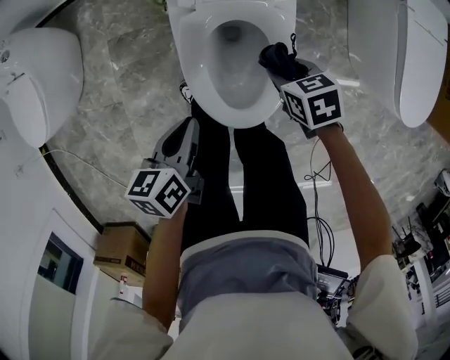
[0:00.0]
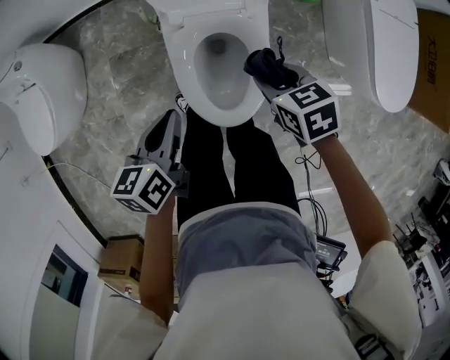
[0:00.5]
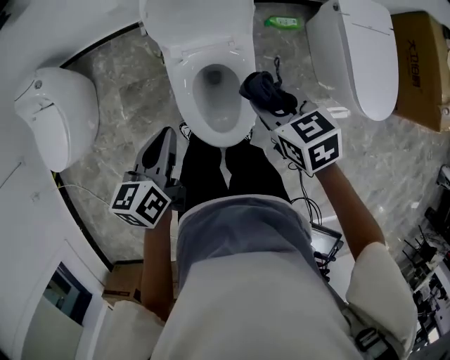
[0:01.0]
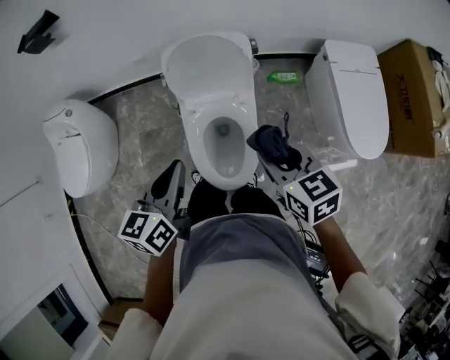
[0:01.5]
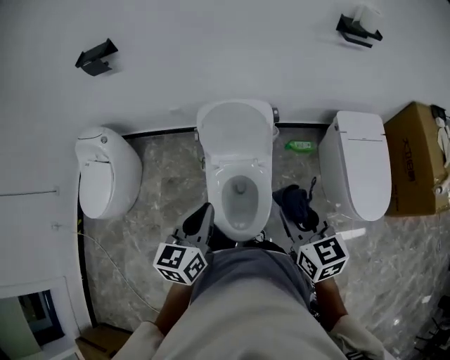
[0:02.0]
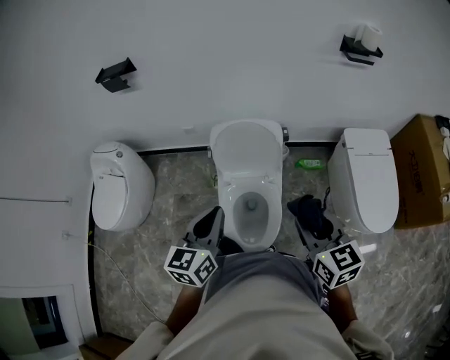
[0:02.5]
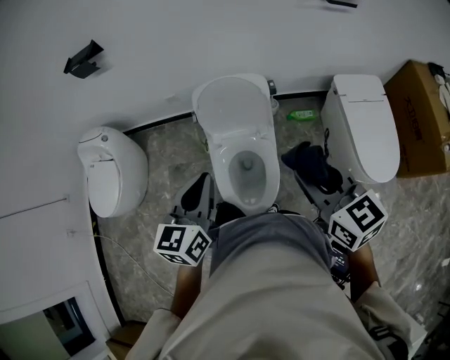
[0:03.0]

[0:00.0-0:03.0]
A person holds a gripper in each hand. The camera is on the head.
0:00.0 to 0:01.5: Both grippers travel together upward, roughly 35 cm. The right gripper rotates about 30 degrees. Meanwhile the left gripper turns by about 30 degrees.
0:01.5 to 0:03.0: The right gripper travels upward by approximately 15 cm. Meanwhile the left gripper is displaced upward by approximately 10 cm.

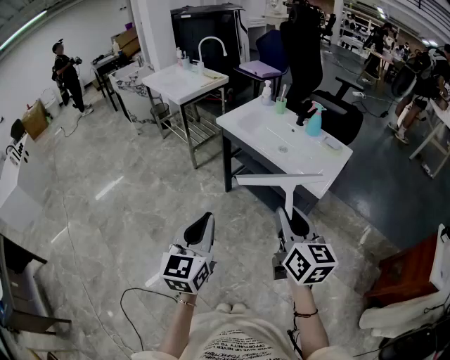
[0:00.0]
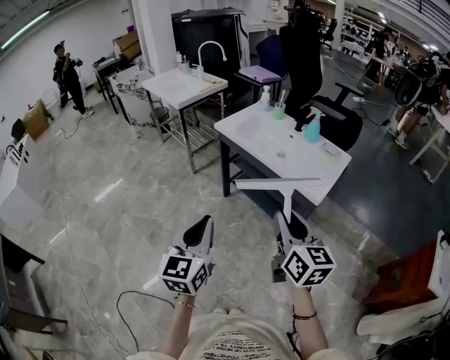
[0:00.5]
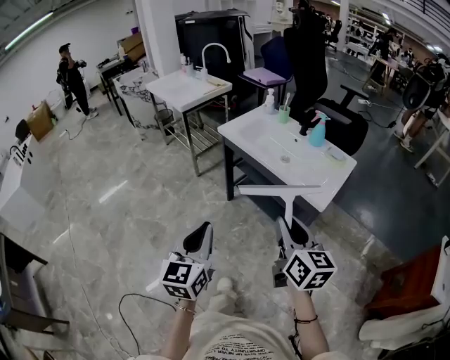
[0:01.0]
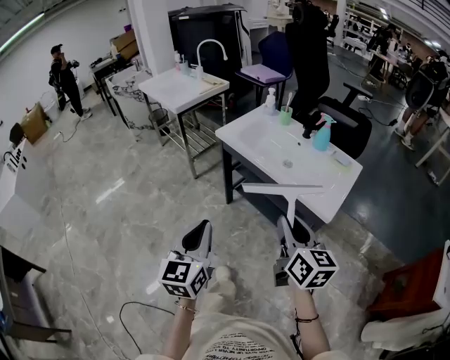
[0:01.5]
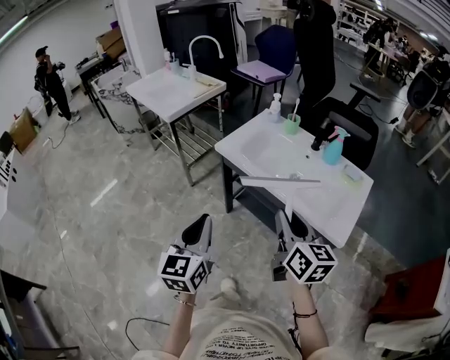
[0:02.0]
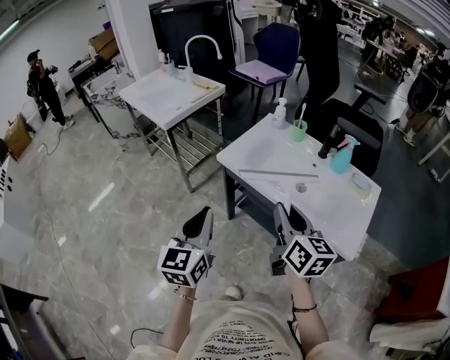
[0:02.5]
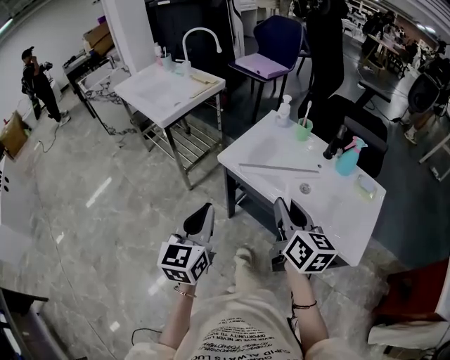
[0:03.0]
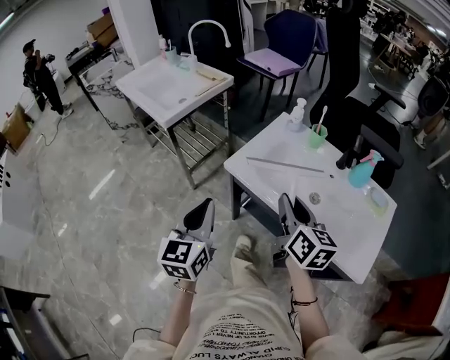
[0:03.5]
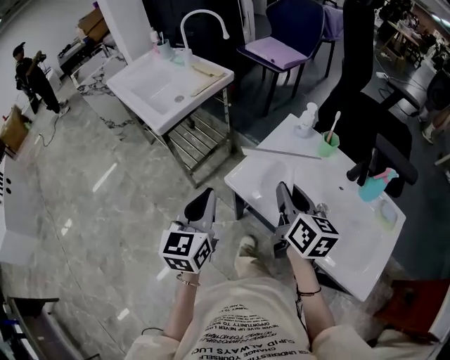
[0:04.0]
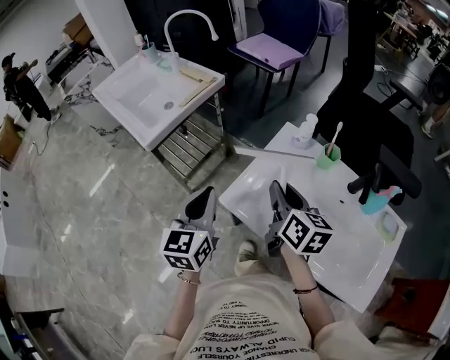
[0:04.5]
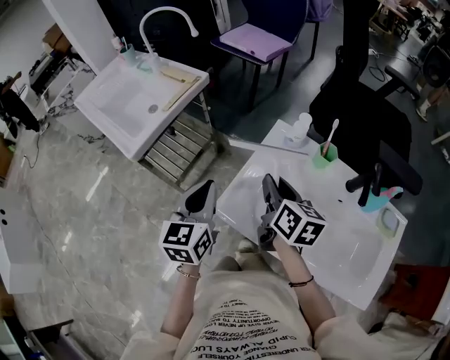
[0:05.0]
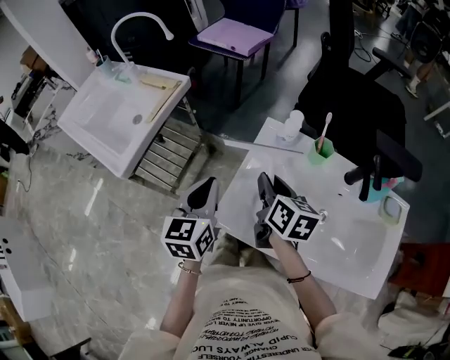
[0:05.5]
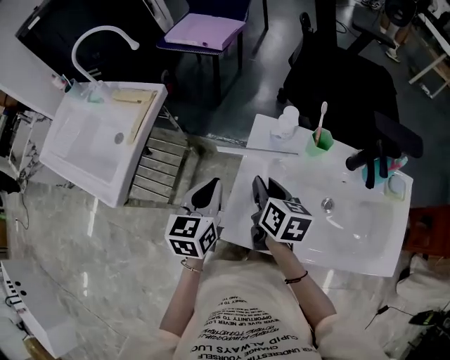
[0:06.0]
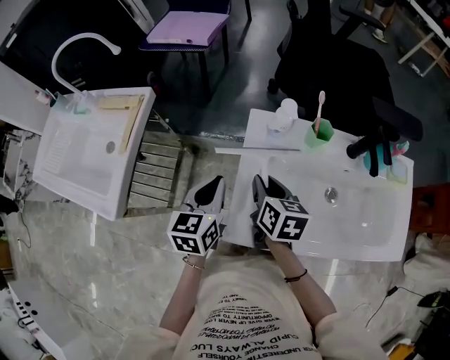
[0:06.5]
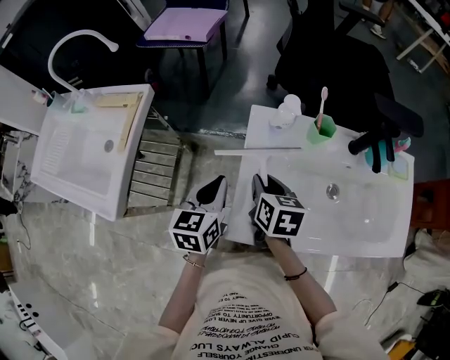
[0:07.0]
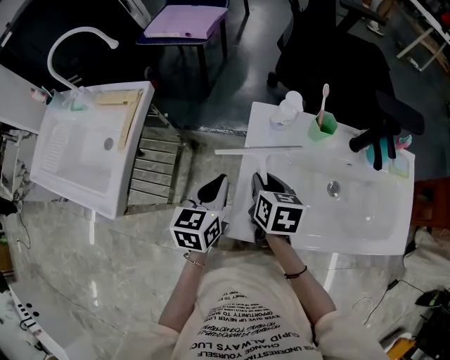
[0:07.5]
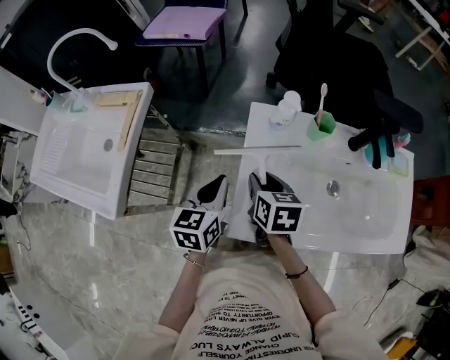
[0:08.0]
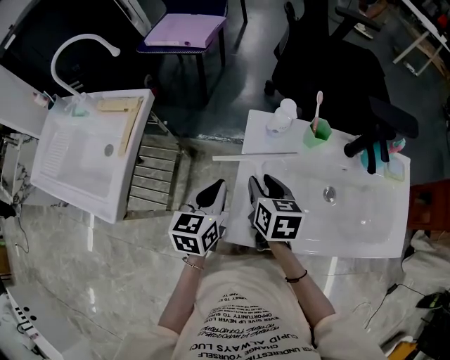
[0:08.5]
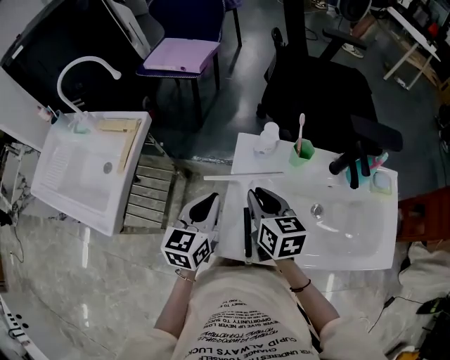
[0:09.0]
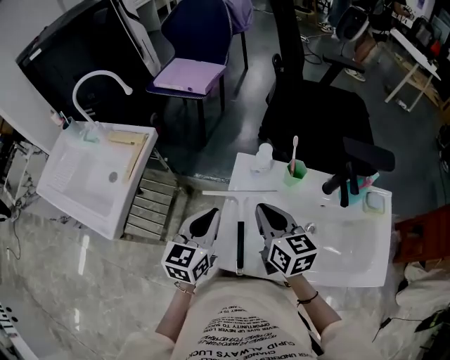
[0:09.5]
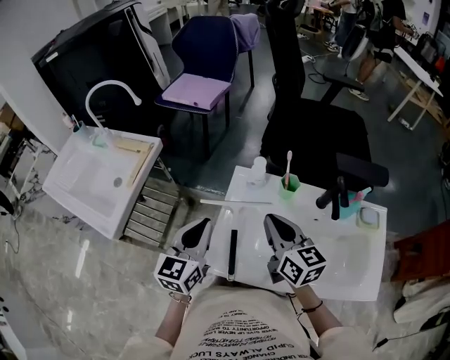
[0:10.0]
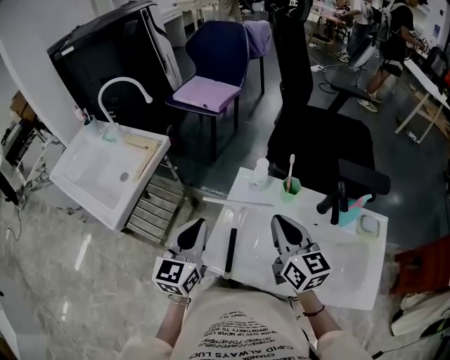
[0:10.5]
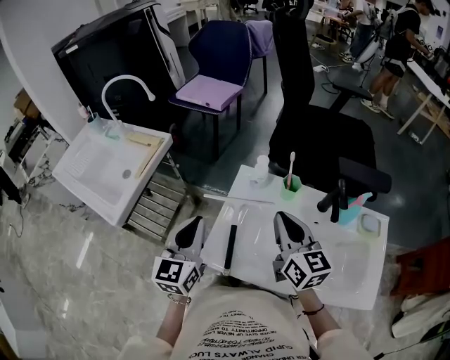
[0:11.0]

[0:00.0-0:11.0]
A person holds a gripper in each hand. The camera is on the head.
0:00.0 to 0:02.0: Both grippers move forward, roughly 25 cm.
0:02.0 to 0:03.5: Both grippers travel together forward, about 20 cm.
0:03.5 to 0:05.5: Both grippers travel together forward, roughly 30 cm. The right gripper turns by some 20 degrees.
0:05.5 to 0:07.5: The left gripper shifts roughly 10 cm downward and forward, and swivels roughly 20 degrees, while the right gripper heads downward, covering some 10 cm, and changes its angle by roughly 20 degrees.
0:07.5 to 0:09.0: The right gripper moves upward, some 5 cm. The left gripper ends up roughly 5 cm from where it was.
0:09.0 to 0:11.0: The left gripper heads upward and backward, covering about 10 cm, and rotates some 20 degrees. The right gripper goes about 15 cm upward and to the right, and rotates approximately 20 degrees.

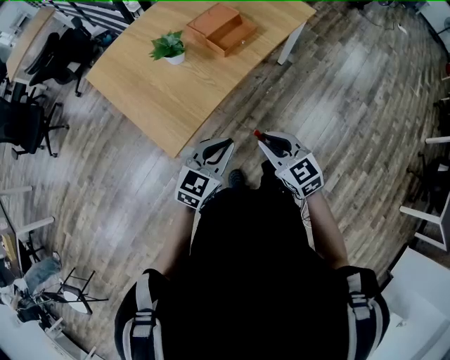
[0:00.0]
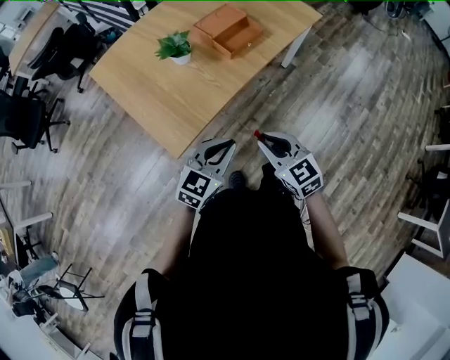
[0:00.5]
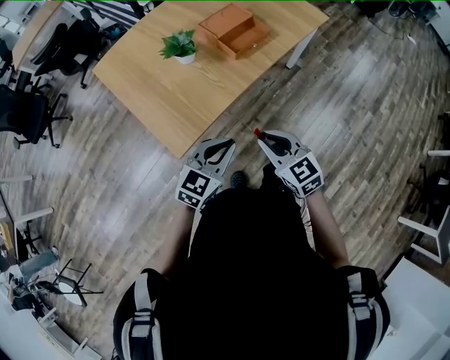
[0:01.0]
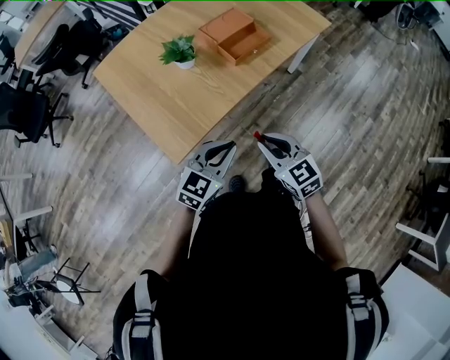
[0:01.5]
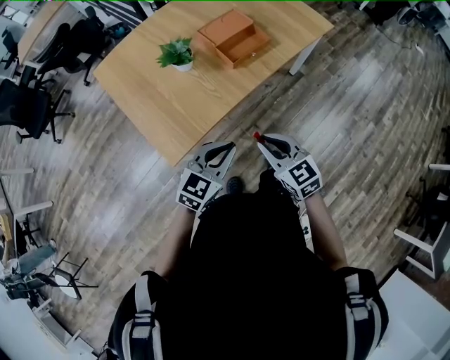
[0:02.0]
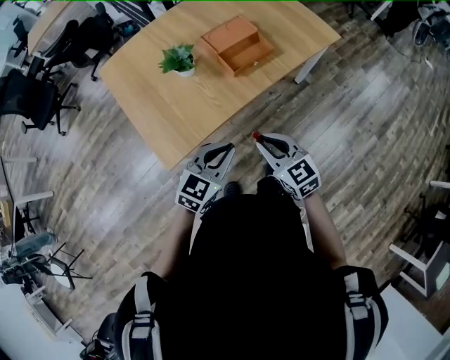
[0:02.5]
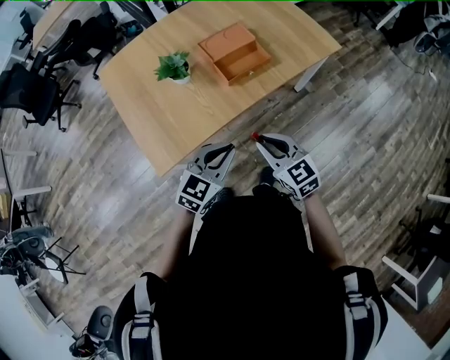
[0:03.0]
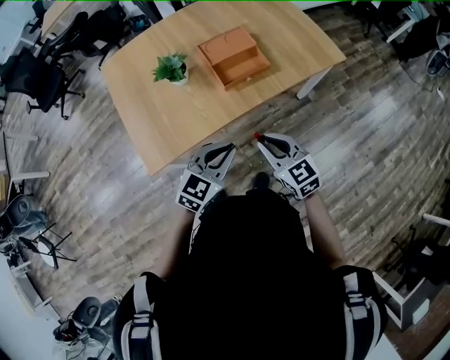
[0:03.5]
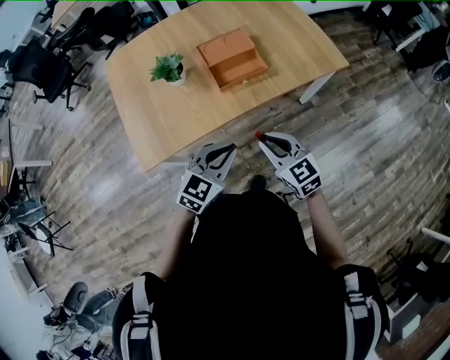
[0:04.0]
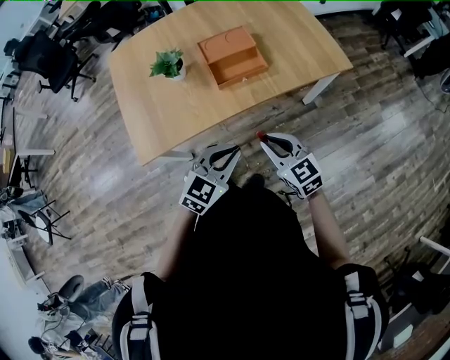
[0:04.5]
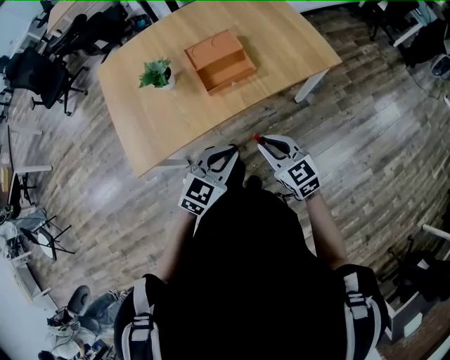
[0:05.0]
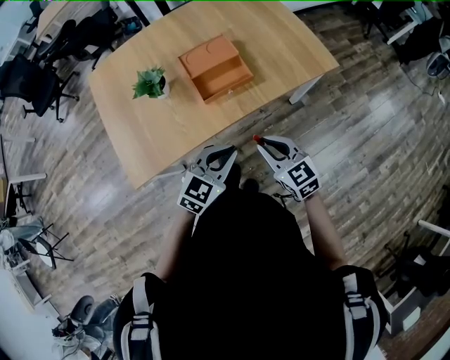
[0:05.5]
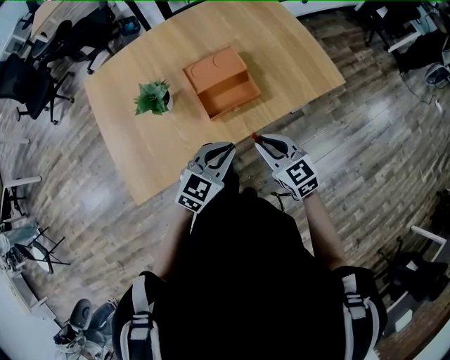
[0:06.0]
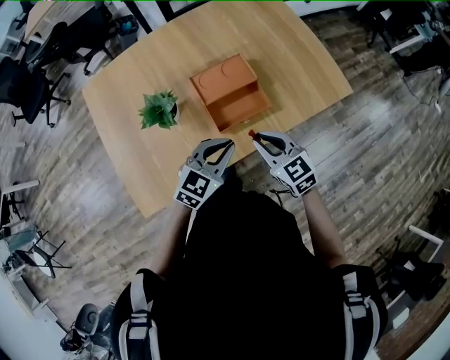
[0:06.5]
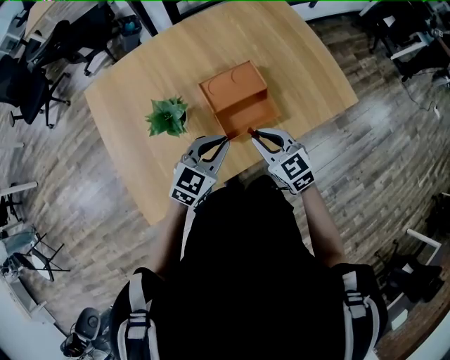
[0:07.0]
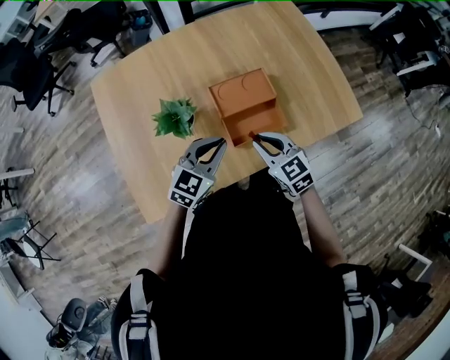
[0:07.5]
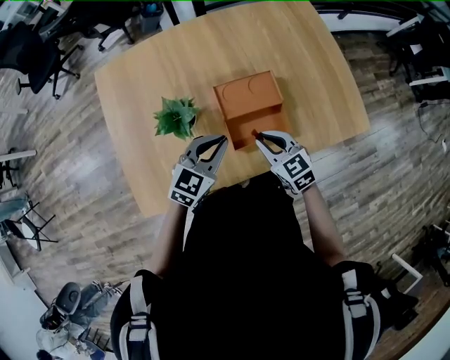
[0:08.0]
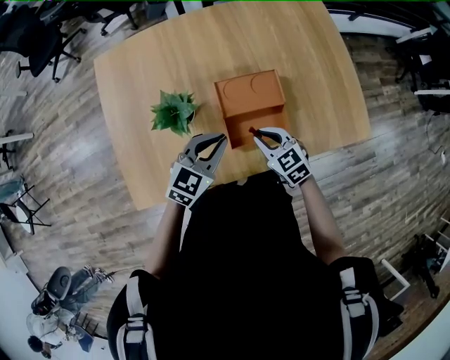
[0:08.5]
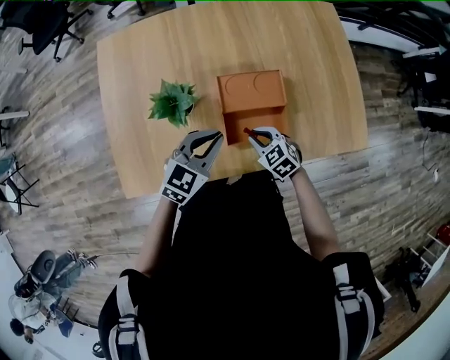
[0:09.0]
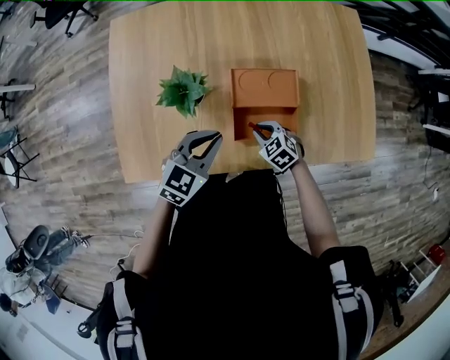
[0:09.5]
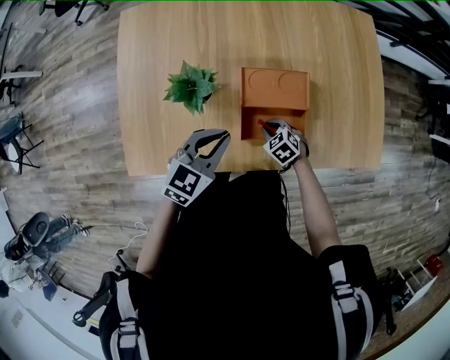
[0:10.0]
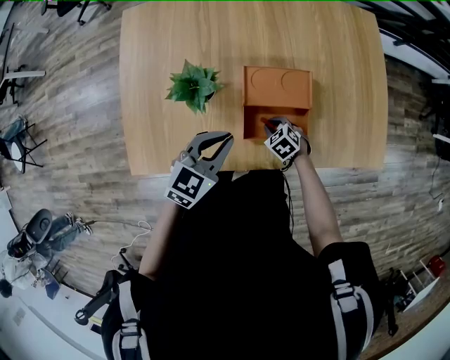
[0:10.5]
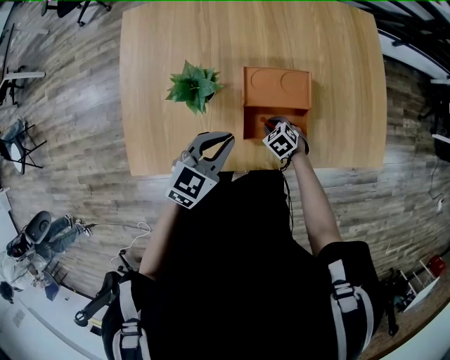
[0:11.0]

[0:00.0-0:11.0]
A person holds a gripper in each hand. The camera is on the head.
0:00.0 to 0:02.0: Both grippers travel together forward, approximately 5 cm.
0:02.0 to 0:03.5: The two grippers go approximately 15 cm to the right and forward.
0:03.5 to 0:05.5: Both grippers move to the right and forward, some 10 cm.
0:05.5 to 0:07.5: Both grippers move forward and to the left, some 30 cm.
0:07.5 to 0:09.0: The right gripper travels downward by some 10 cm, and swivels some 30 degrees.
0:09.0 to 0:11.0: The right gripper heads downward, covering about 10 cm.

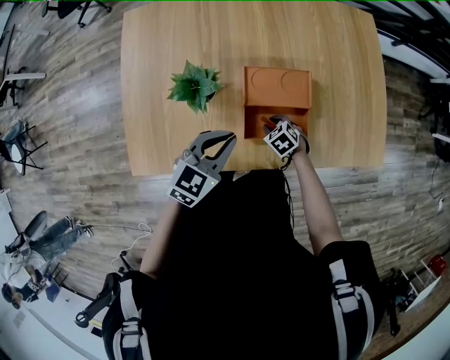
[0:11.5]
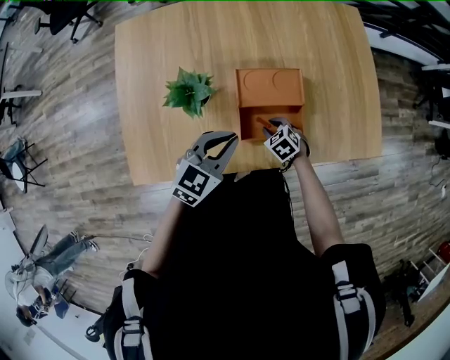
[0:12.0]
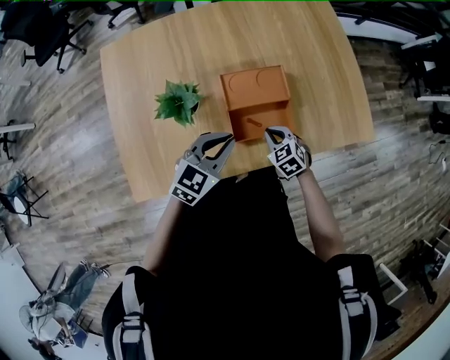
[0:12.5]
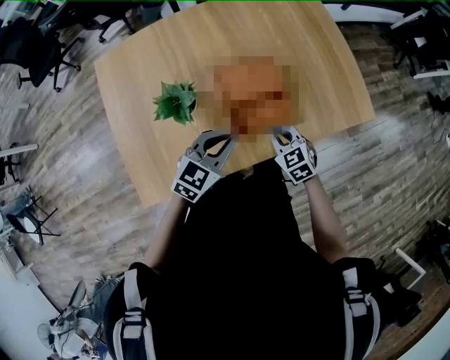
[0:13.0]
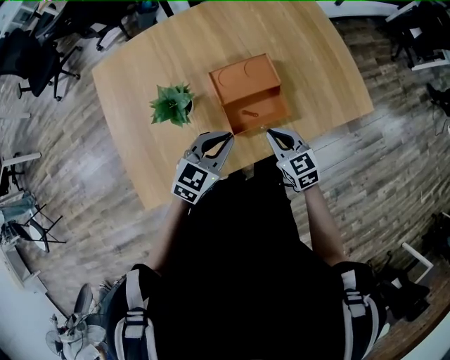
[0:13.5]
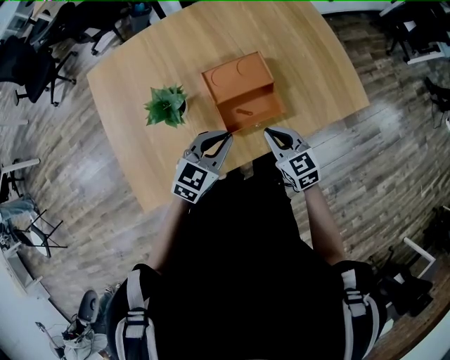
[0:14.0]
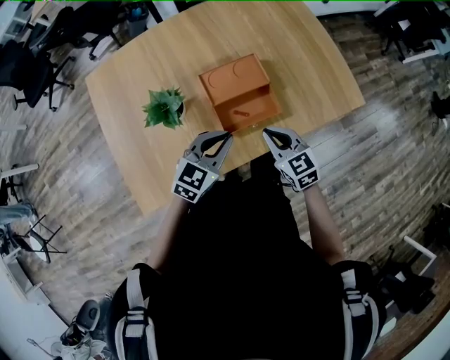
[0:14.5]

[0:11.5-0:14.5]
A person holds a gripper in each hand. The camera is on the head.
0:11.5 to 0:13.0: The right gripper heads upward, covering approximately 15 cm, rotates roughly 30 degrees, and closes.
0:13.0 to 0:14.5: The right gripper moves upward, about 5 cm.
